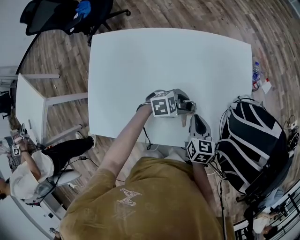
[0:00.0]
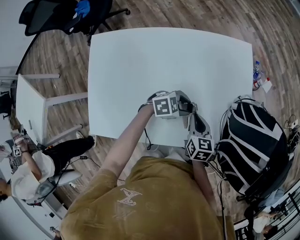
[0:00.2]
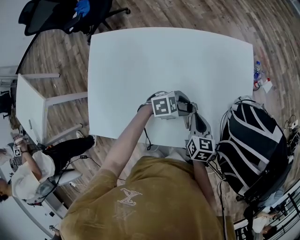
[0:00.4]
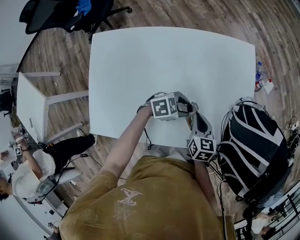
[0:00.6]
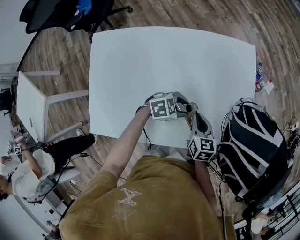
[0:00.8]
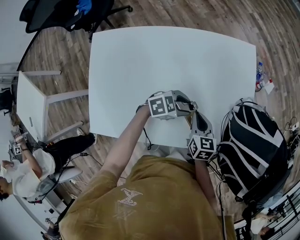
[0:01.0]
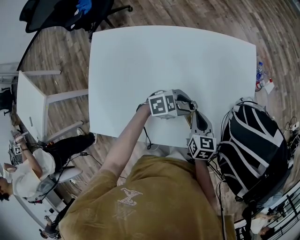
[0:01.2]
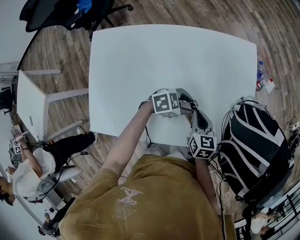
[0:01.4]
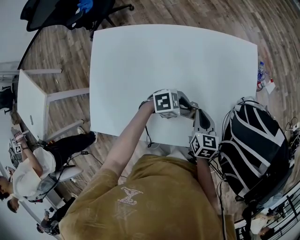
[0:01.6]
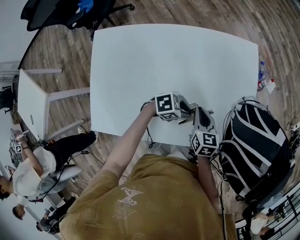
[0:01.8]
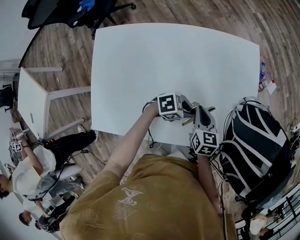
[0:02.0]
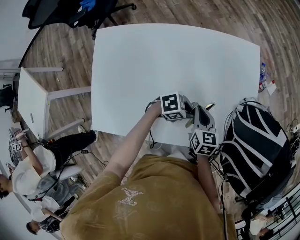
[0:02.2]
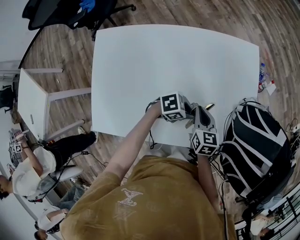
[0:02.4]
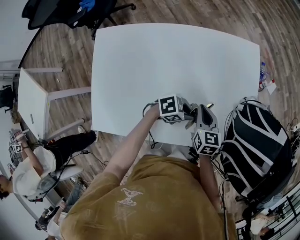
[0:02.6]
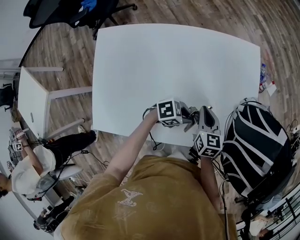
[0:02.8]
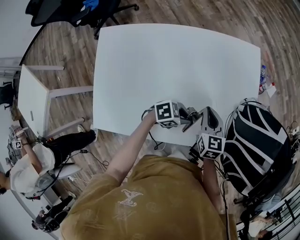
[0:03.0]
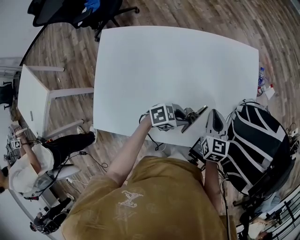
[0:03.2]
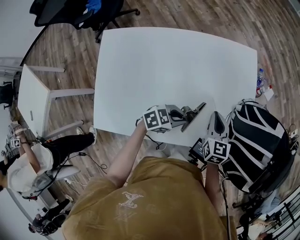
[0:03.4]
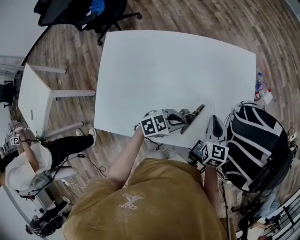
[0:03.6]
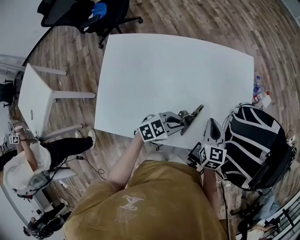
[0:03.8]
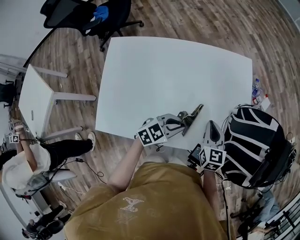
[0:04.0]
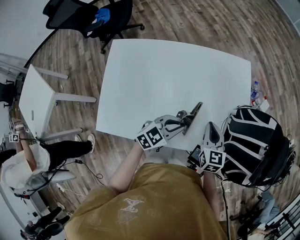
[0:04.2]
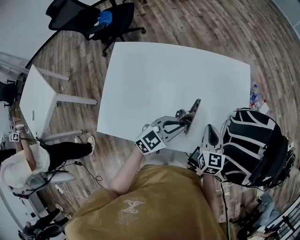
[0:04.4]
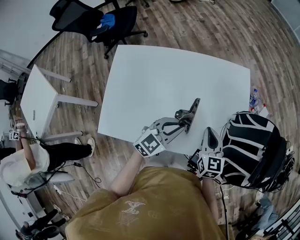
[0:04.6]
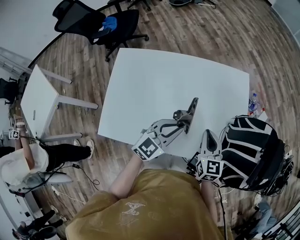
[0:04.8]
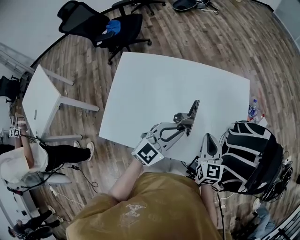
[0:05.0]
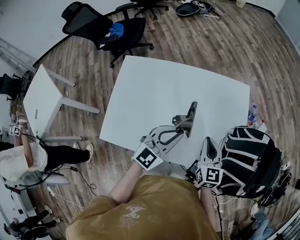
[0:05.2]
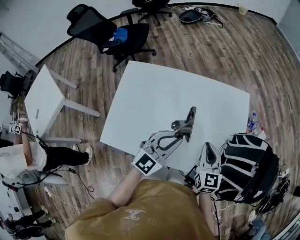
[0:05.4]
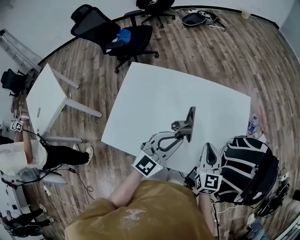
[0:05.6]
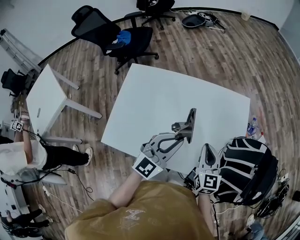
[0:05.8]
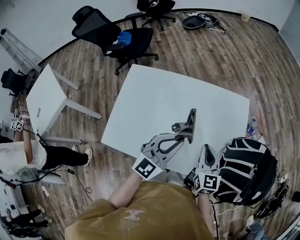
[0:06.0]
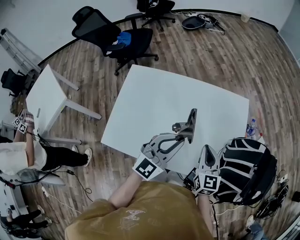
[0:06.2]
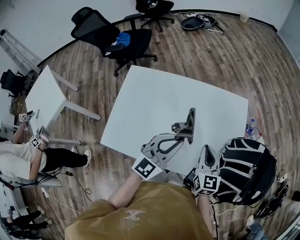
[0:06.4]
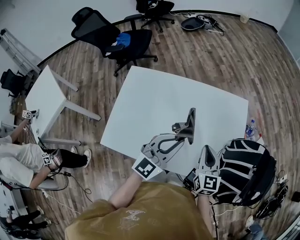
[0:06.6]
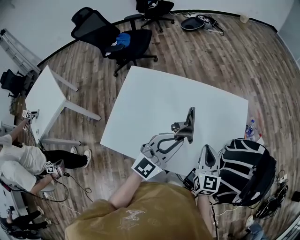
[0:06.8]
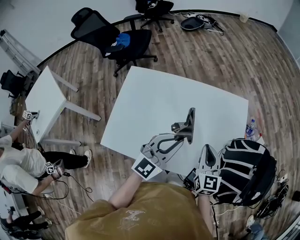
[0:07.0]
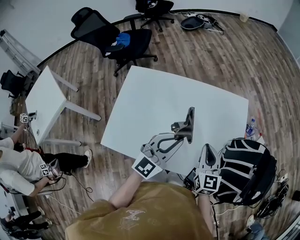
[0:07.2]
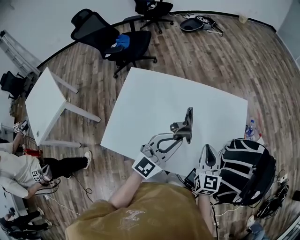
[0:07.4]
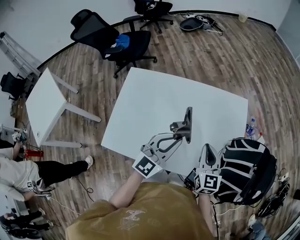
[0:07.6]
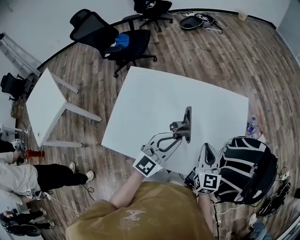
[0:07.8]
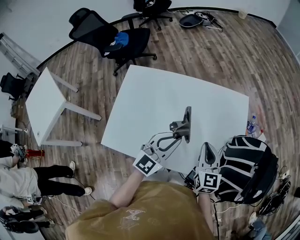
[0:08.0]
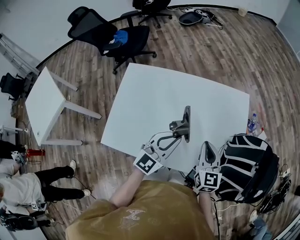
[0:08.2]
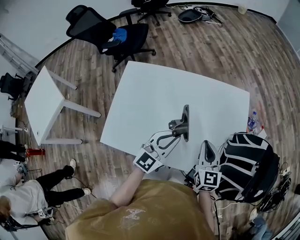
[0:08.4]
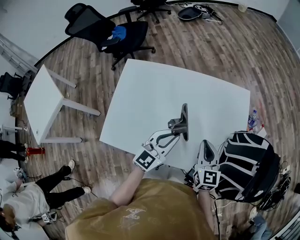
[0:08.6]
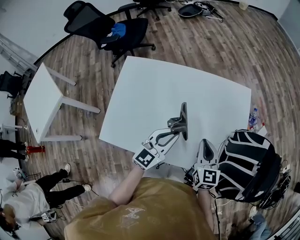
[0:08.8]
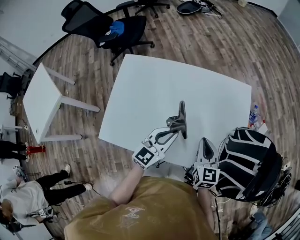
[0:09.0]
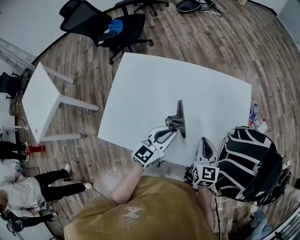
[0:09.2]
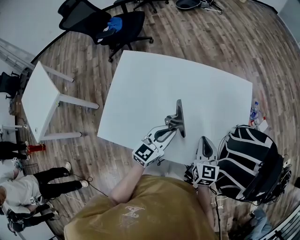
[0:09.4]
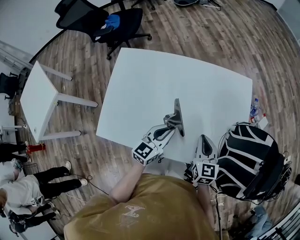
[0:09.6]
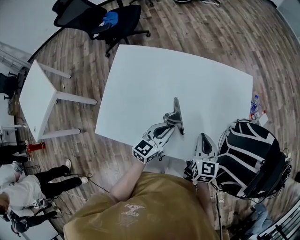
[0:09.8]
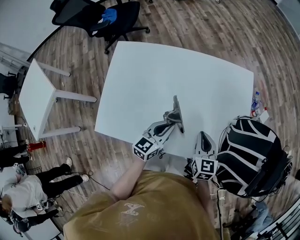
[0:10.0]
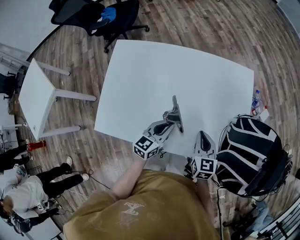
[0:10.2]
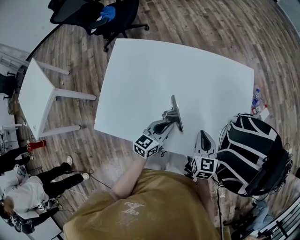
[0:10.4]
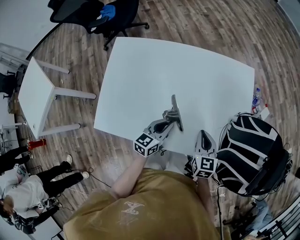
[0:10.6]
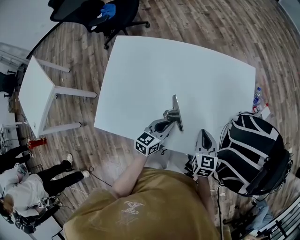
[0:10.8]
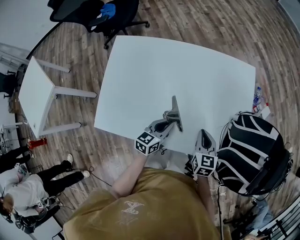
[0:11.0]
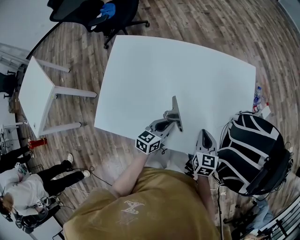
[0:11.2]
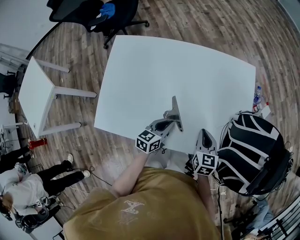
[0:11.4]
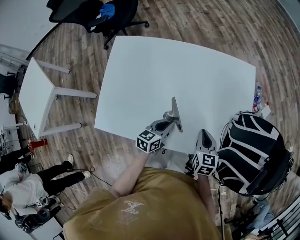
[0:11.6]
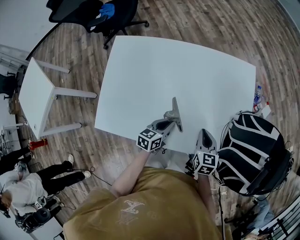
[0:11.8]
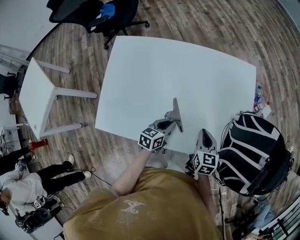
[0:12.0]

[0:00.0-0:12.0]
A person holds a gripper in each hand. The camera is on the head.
0:00.0 to 0:01.6: The left gripper closes.
0:01.6 to 0:03.0: The left gripper shifts by roughly 5 cm.
0:03.0 to 0:04.4: The left gripper heads upward, covering approximately 15 cm, and changes its angle by about 50 degrees, while the right gripper travels upward by approximately 5 cm.
0:04.4 to 0:06.0: The left gripper travels upward by some 15 cm, and swivels roughly 30 degrees; the right gripper heads upward, covering roughly 5 cm.
0:06.0 to 0:07.6: Neither gripper changes place.
0:07.6 to 0:09.0: The left gripper goes roughly 10 cm downward.
0:09.0 to 0:10.4: The left gripper heads downward, covering roughly 10 cm, and turns by some 20 degrees. The right gripper is displaced downward by roughly 5 cm.
0:10.4 to 0:12.0: The left gripper goes approximately 5 cm downward.

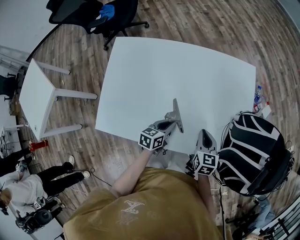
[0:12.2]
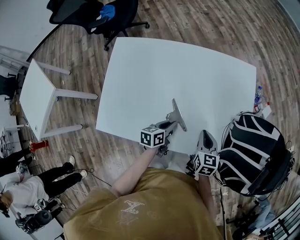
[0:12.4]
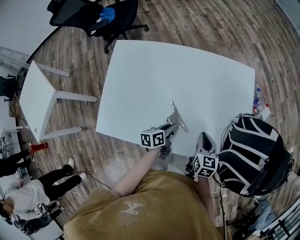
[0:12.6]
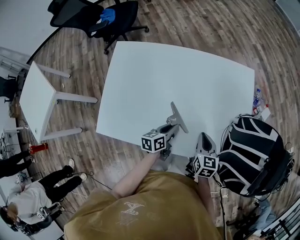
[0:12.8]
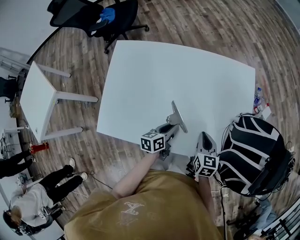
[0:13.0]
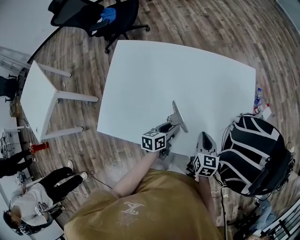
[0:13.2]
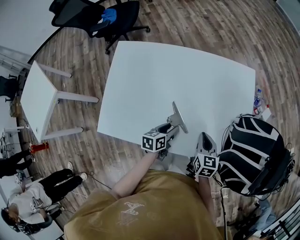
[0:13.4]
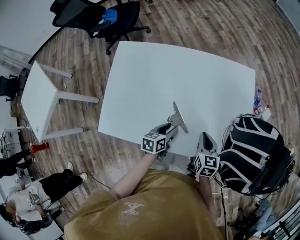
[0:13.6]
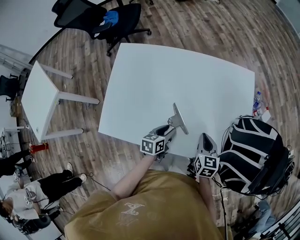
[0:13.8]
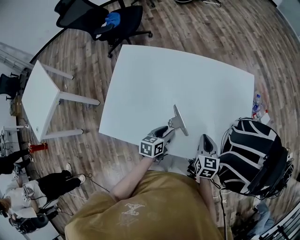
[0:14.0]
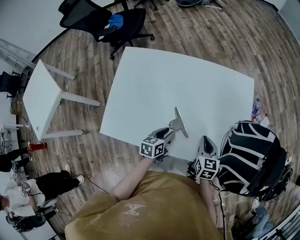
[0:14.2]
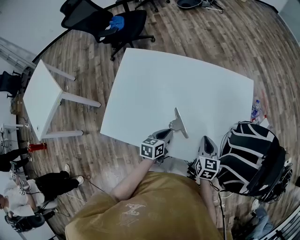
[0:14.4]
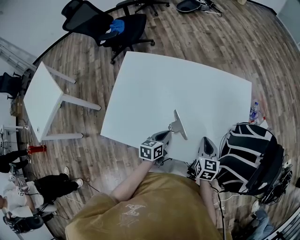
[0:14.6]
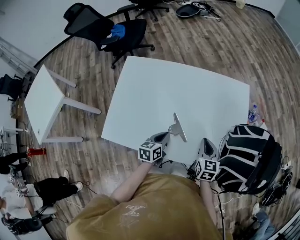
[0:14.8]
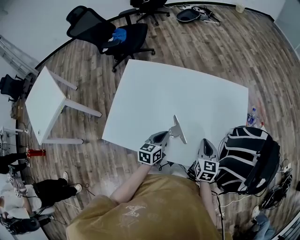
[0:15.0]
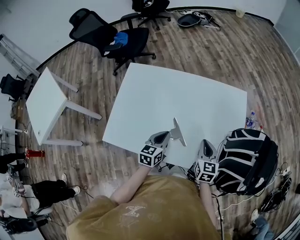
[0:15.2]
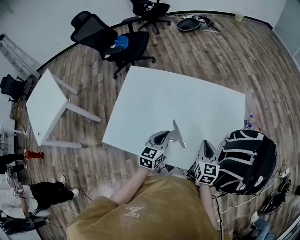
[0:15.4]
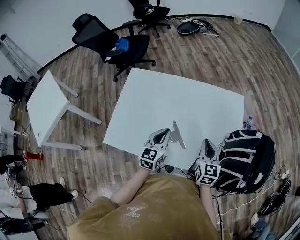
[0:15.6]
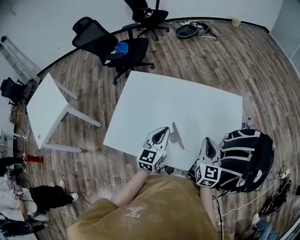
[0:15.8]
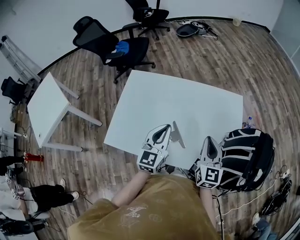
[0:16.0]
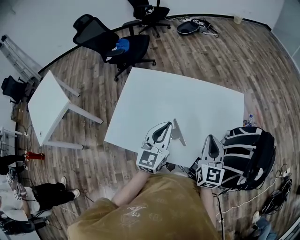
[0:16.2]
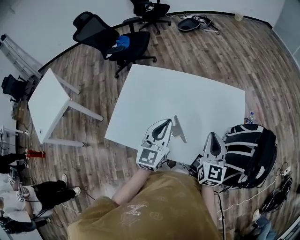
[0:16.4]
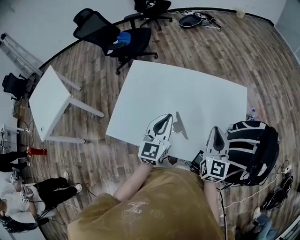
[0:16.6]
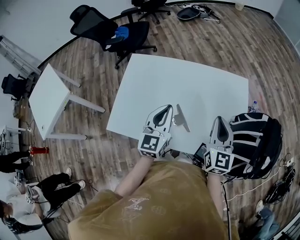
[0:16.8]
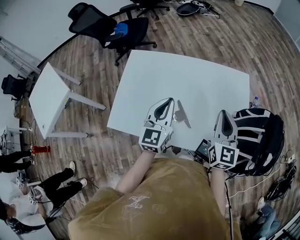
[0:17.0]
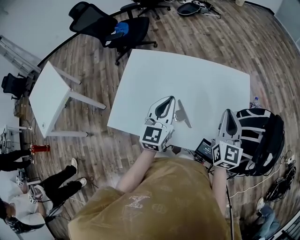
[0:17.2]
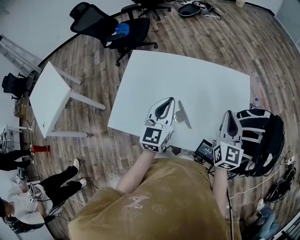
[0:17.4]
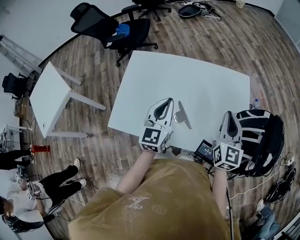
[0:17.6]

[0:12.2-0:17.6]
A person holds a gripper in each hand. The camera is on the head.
0:12.2 to 0:13.6: The left gripper opens up.
0:13.6 to 0:15.0: The left gripper heads upward, covering approximately 5 cm, and closes.
0:15.0 to 0:16.2: Both grippers move upward, roughly 20 cm. The right gripper rotates some 20 degrees, while the left gripper rotates some 40 degrees.
0:16.2 to 0:17.6: The right gripper changes place by approximately 5 cm.

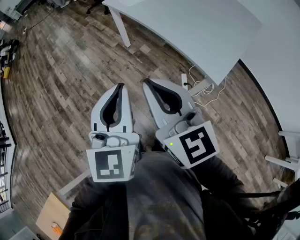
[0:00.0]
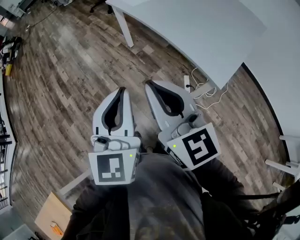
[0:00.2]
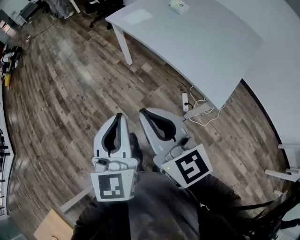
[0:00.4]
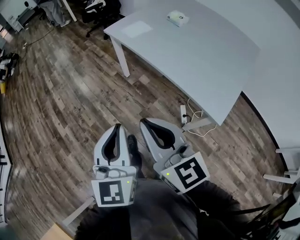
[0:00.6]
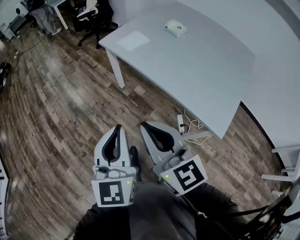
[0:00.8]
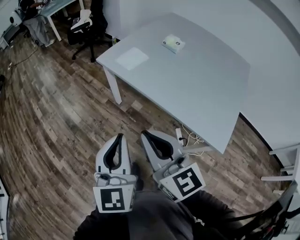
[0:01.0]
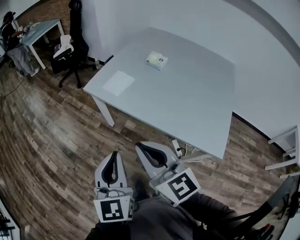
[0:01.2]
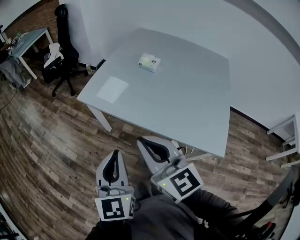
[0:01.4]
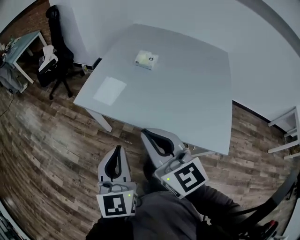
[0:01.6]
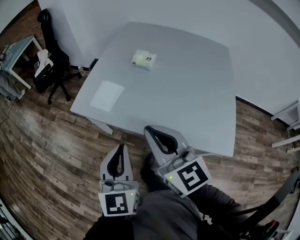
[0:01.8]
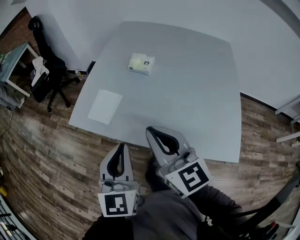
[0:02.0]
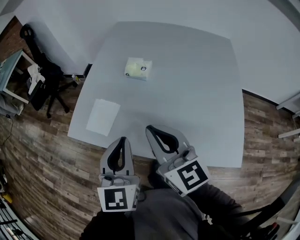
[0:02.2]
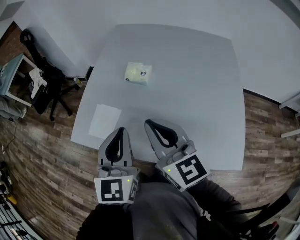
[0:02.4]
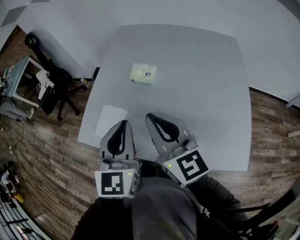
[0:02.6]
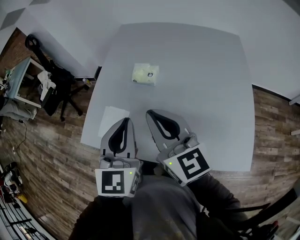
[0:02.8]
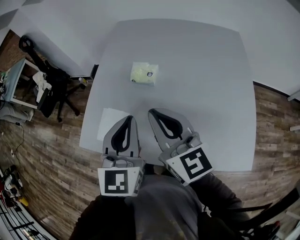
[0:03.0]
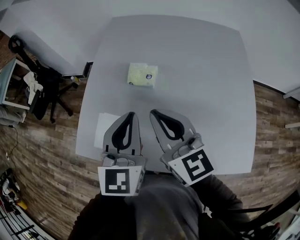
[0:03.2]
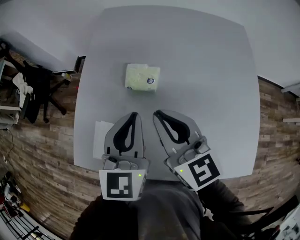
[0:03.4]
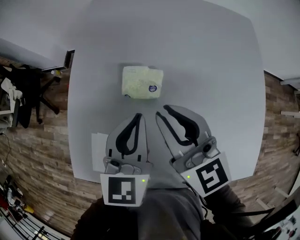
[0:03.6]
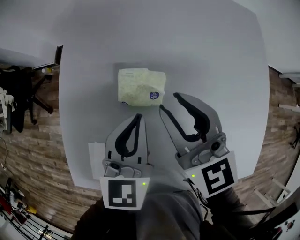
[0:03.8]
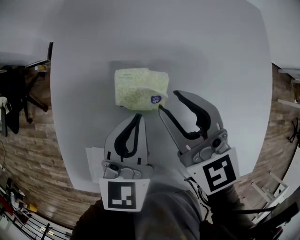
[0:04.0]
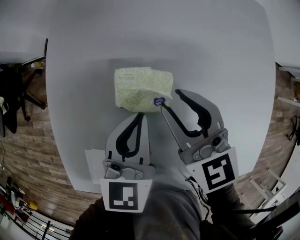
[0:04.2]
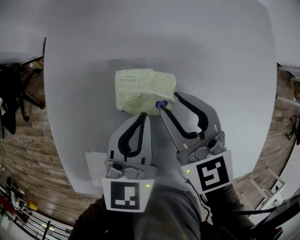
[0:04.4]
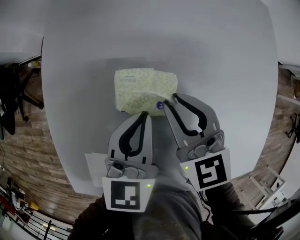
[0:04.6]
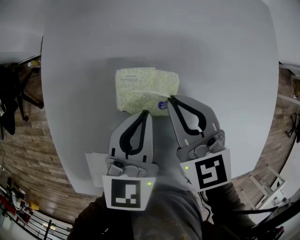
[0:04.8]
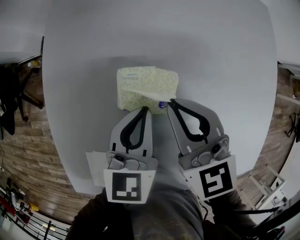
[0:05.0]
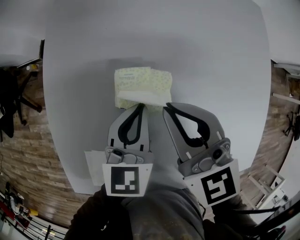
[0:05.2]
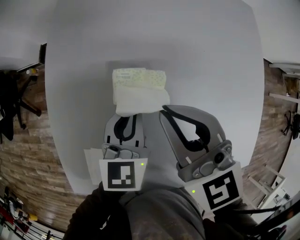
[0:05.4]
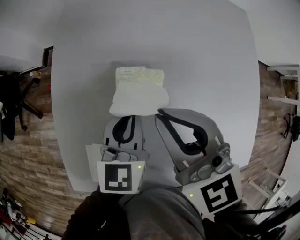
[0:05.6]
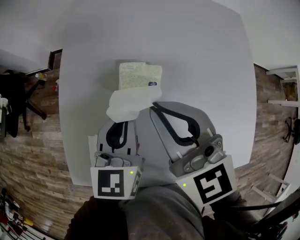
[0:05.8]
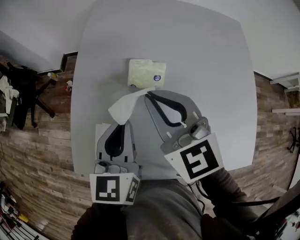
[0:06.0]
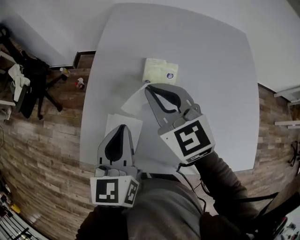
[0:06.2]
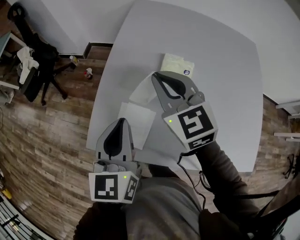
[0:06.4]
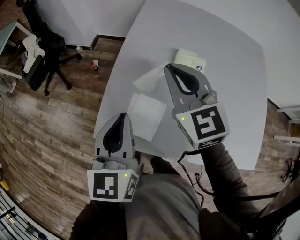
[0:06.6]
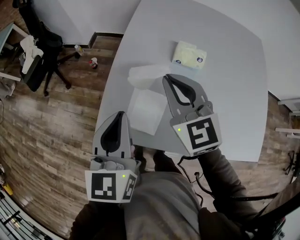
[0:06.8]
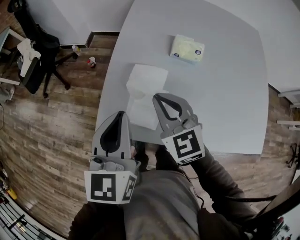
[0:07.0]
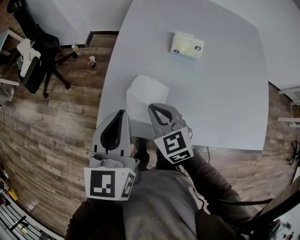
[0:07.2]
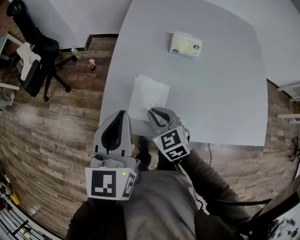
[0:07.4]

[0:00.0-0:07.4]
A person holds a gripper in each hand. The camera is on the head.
0:00.0 to 0:01.4: Both grippers travel together forward, roughly 40 cm.
0:01.4 to 0:03.0: The two grippers go approximately 35 cm forward. The left gripper changes its angle by some 20 degrees.
0:03.0 to 0:04.4: The grippers both shift forward and downward by roughly 35 cm. The left gripper changes its angle by approximately 30 degrees; the right gripper swivels roughly 30 degrees, and opens its fingers.
0:04.4 to 0:06.0: The left gripper moves backward, upward and to the left, about 20 cm. The right gripper heads upward, backward and to the left, covering roughly 20 cm, and closes its fingers.
0:06.0 to 0:07.4: The right gripper moves to the left, downward and backward, approximately 30 cm, and changes its angle by some 20 degrees, while the left gripper heads to the left and backward, covering some 25 cm.
